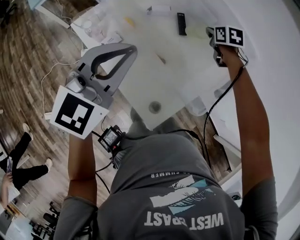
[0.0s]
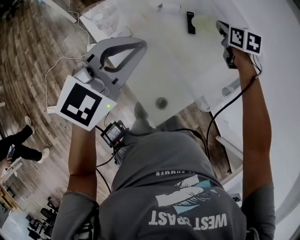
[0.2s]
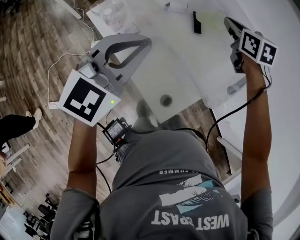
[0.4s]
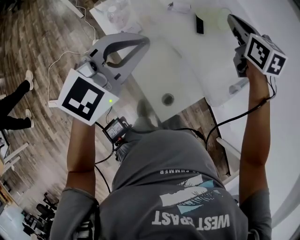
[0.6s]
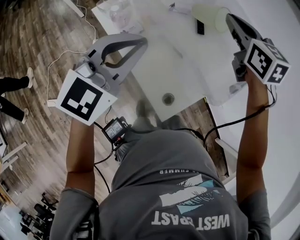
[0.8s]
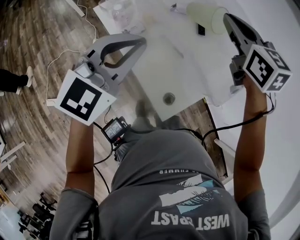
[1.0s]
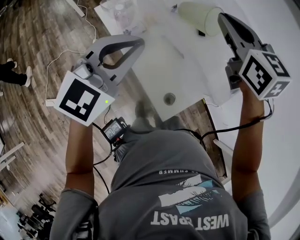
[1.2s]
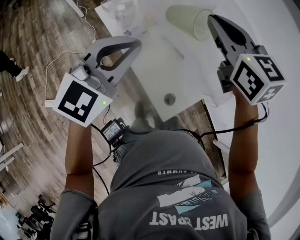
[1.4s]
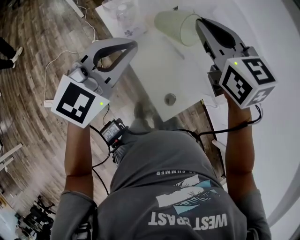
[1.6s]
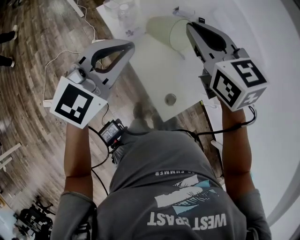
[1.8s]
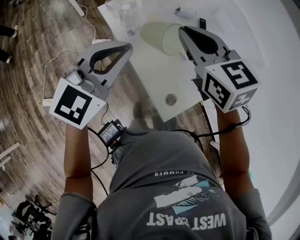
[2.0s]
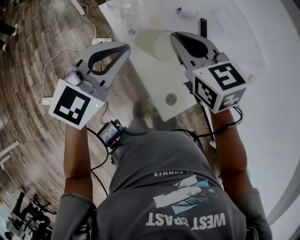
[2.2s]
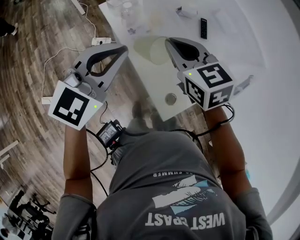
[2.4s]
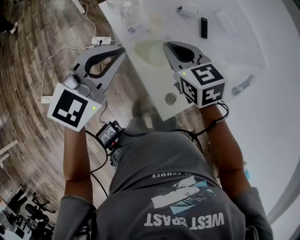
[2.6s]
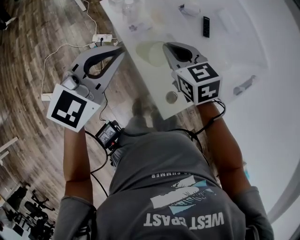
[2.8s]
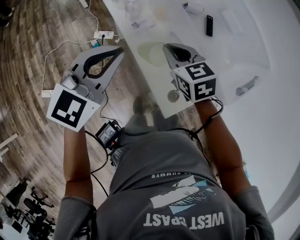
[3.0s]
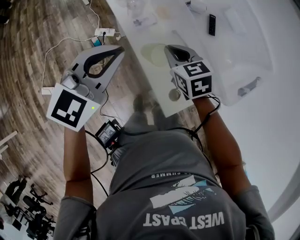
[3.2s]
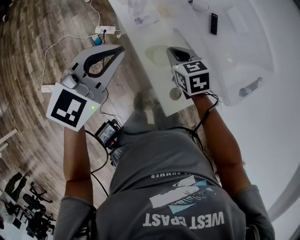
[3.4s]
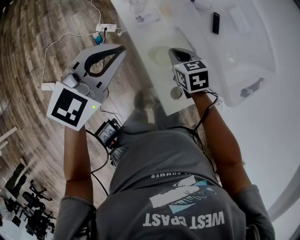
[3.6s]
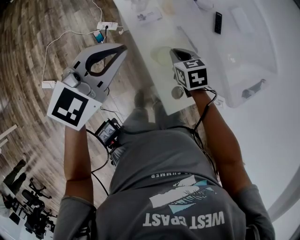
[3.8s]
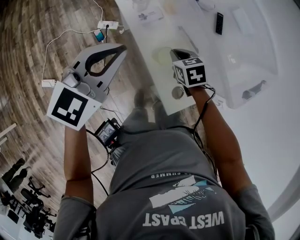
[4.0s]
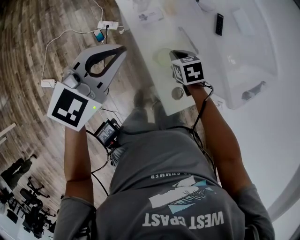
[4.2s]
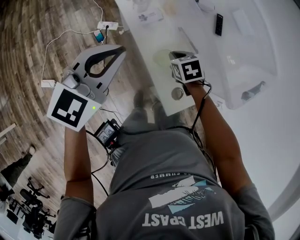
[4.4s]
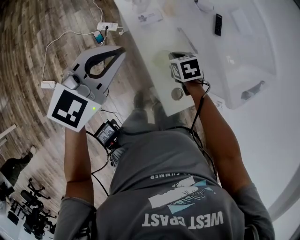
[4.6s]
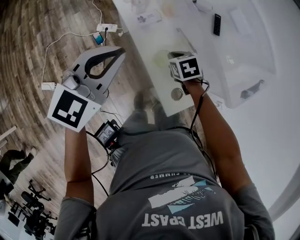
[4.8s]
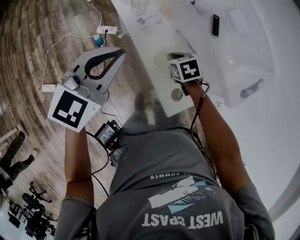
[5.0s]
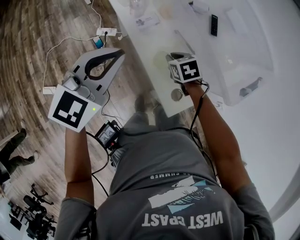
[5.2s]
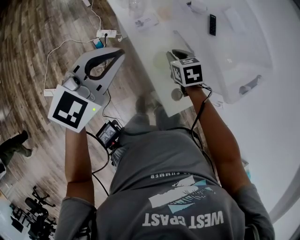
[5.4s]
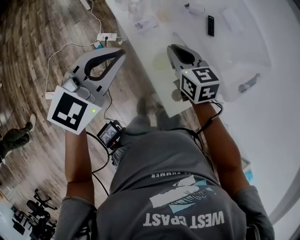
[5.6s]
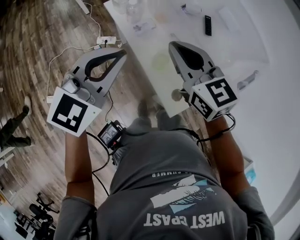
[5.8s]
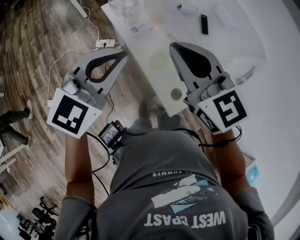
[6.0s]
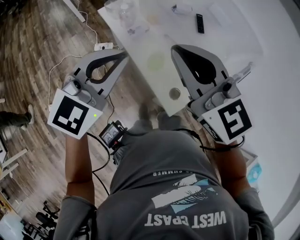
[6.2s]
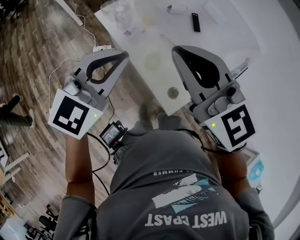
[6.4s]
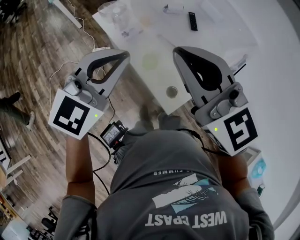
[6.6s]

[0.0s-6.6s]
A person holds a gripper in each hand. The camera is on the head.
0.0s to 1.6s: The right gripper travels to the left, backward and upward by approximately 40 cm, and swivels some 40 degrees; the left gripper moves to the left and backward, some 15 cm.
1.6s to 3.2s: The left gripper is displaced downward by some 10 cm. Meanwhile the right gripper is displaced downward by some 25 cm.
3.2s to 5.0s: The right gripper is displaced downward by about 15 cm.
5.0s to 6.6s: The left gripper travels upward and to the right by about 10 cm, while the right gripper heads upward, covering approximately 40 cm, and tips its fingers upward by approximately 50 degrees.

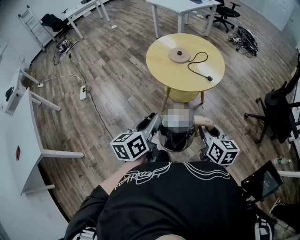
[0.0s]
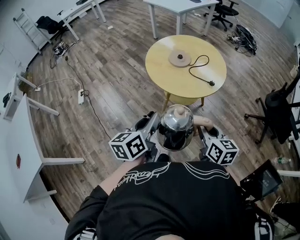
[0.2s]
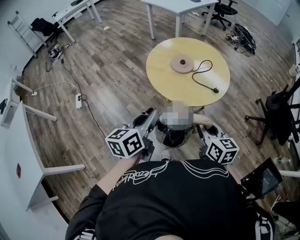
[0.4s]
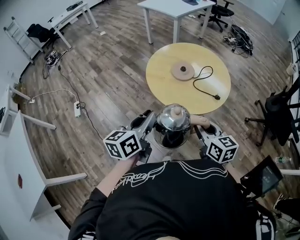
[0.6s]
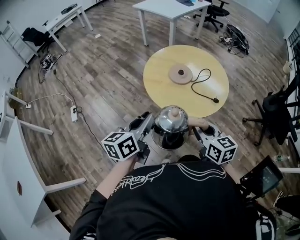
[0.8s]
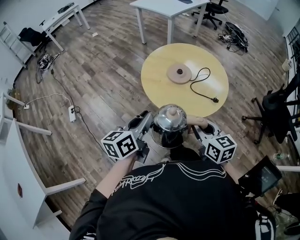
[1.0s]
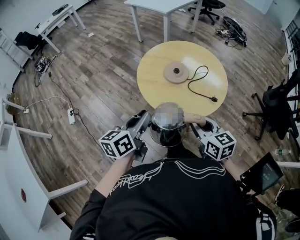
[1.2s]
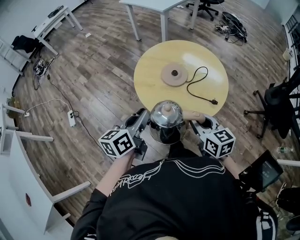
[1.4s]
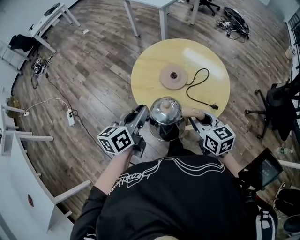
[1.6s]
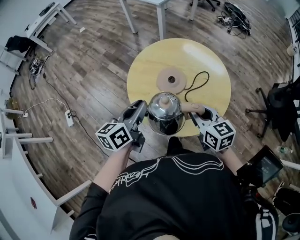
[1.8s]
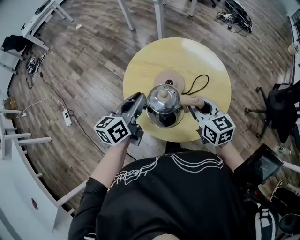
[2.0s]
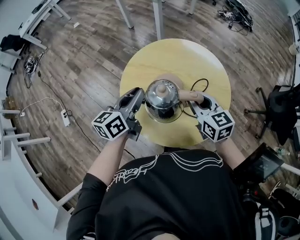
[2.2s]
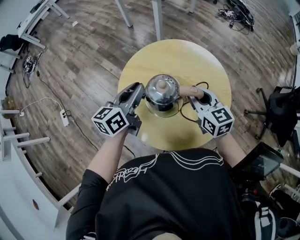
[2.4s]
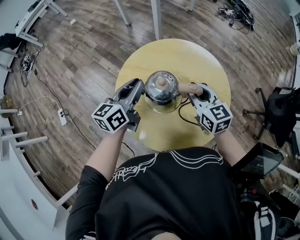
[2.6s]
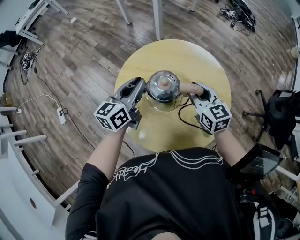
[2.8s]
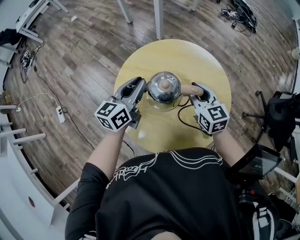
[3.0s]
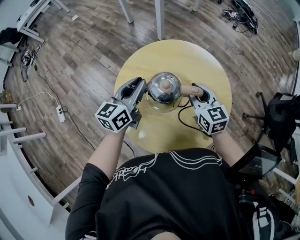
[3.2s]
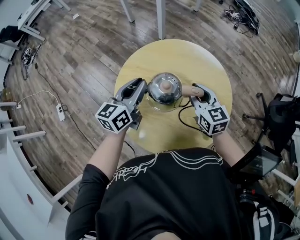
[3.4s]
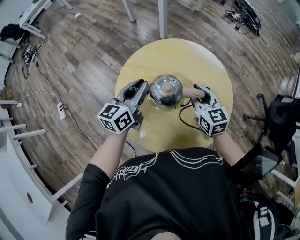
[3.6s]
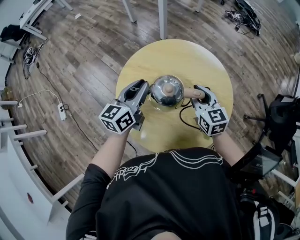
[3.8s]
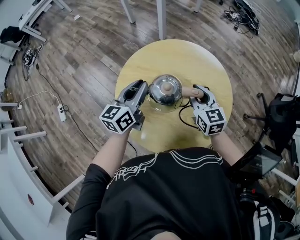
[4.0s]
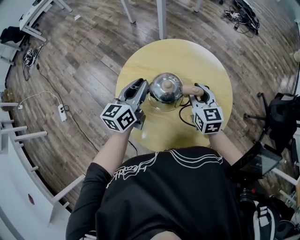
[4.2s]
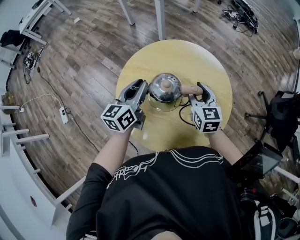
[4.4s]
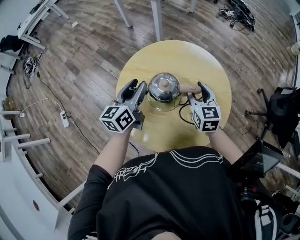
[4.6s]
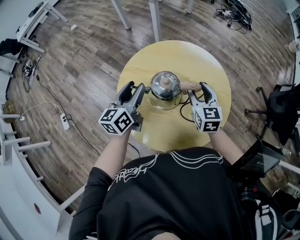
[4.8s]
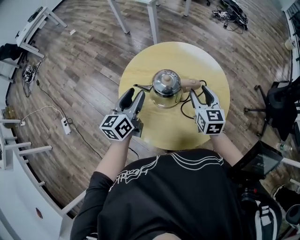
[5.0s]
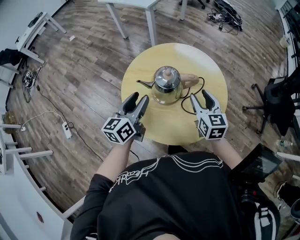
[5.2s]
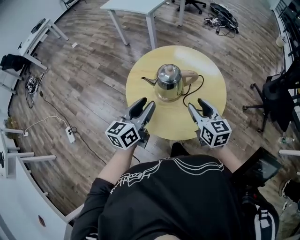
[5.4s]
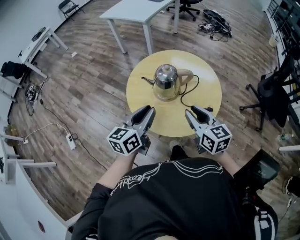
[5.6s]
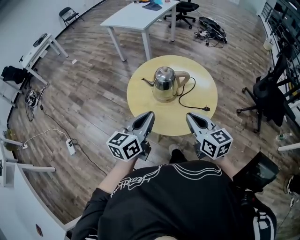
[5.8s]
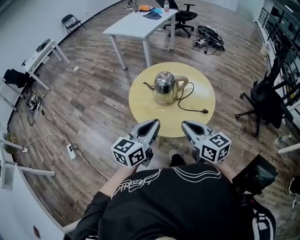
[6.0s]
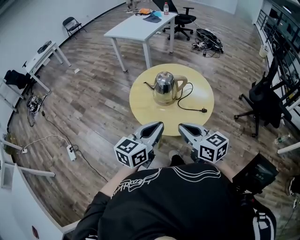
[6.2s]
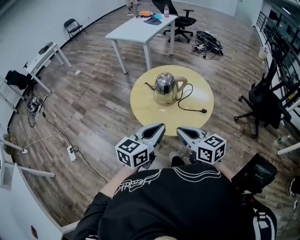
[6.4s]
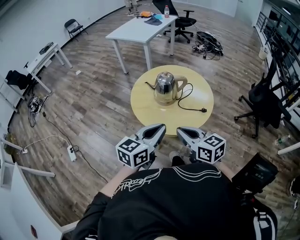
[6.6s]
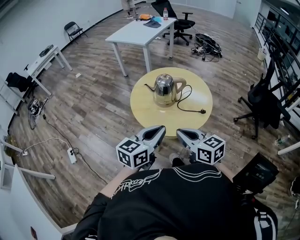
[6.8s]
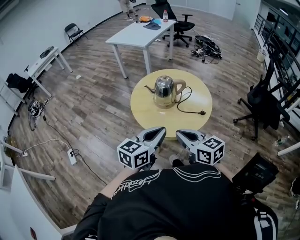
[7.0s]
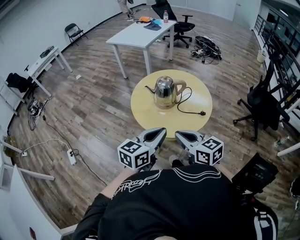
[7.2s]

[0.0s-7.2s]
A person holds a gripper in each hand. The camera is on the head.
0.0s to 1.4s: The two grippers go approximately 25 cm forward.
1.4s to 2.8s: Both grippers travel together forward, some 30 cm.
2.8s to 4.4s: The grippers move only a little.
4.4s to 5.8s: Both grippers move backward and upward, approximately 30 cm. The right gripper closes up; the left gripper opens and closes again.
5.8s to 7.2s: The left gripper goes about 10 cm backward. The right gripper shifts about 10 cm backward and to the left.

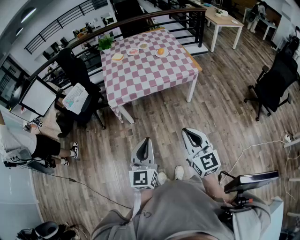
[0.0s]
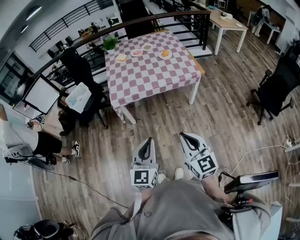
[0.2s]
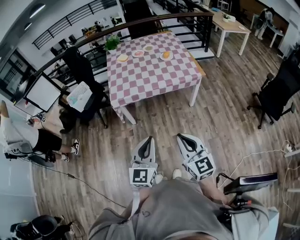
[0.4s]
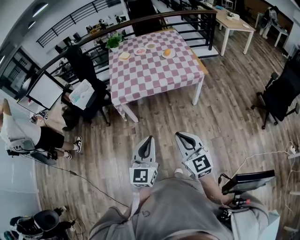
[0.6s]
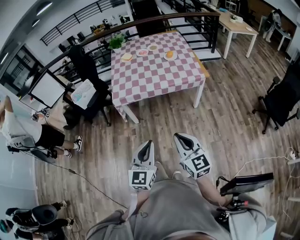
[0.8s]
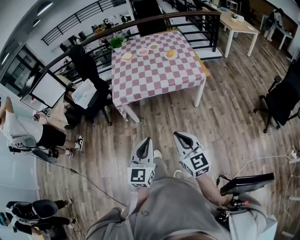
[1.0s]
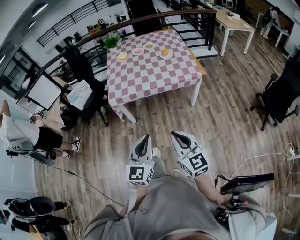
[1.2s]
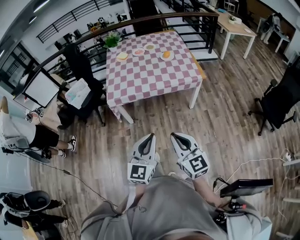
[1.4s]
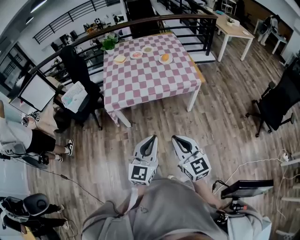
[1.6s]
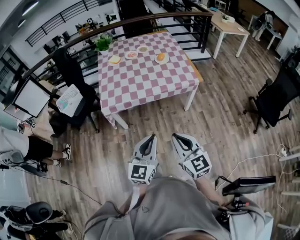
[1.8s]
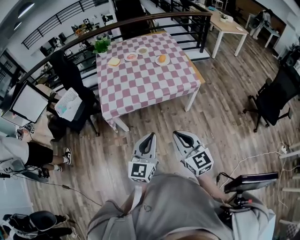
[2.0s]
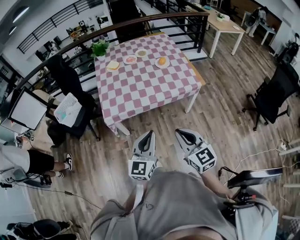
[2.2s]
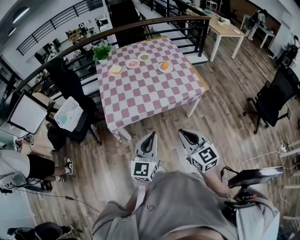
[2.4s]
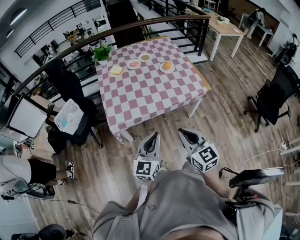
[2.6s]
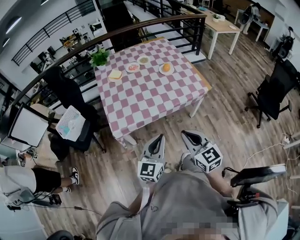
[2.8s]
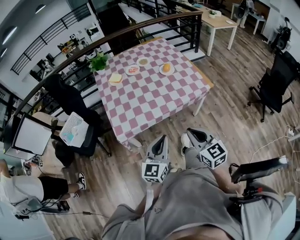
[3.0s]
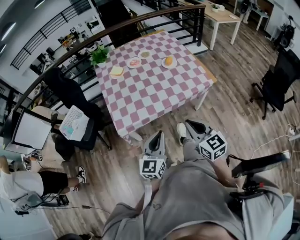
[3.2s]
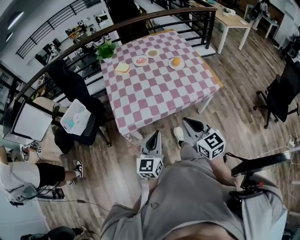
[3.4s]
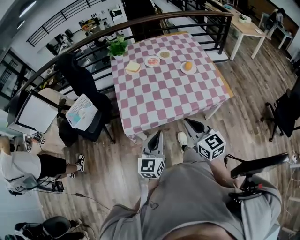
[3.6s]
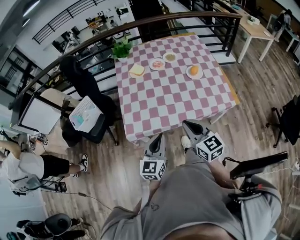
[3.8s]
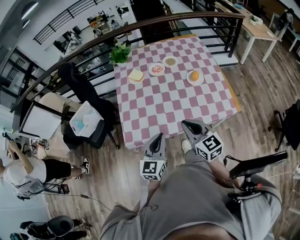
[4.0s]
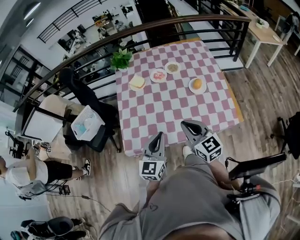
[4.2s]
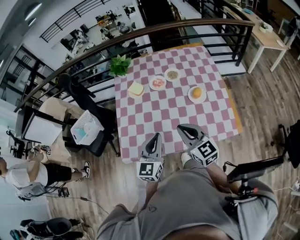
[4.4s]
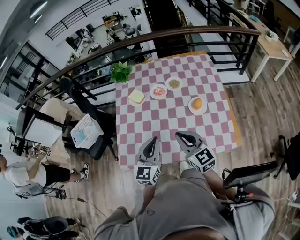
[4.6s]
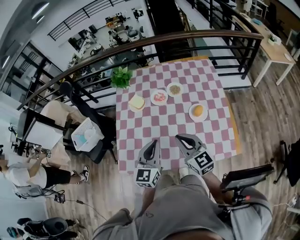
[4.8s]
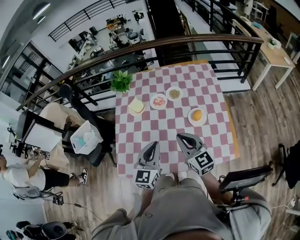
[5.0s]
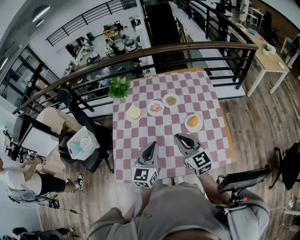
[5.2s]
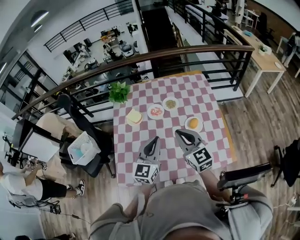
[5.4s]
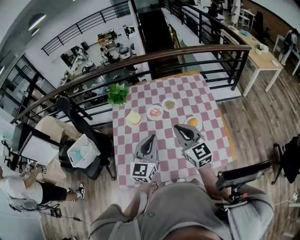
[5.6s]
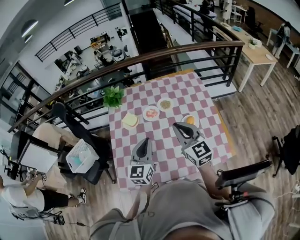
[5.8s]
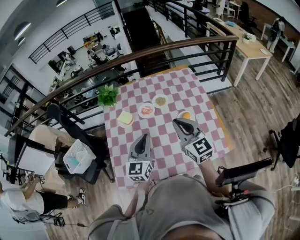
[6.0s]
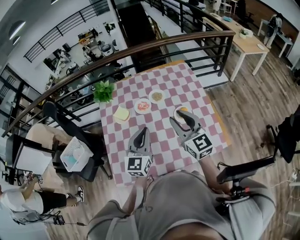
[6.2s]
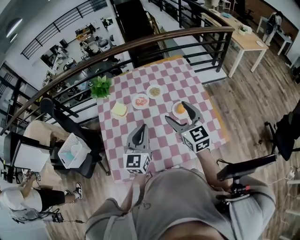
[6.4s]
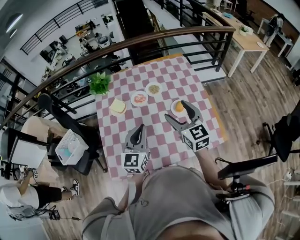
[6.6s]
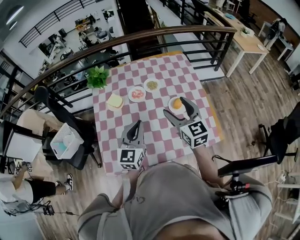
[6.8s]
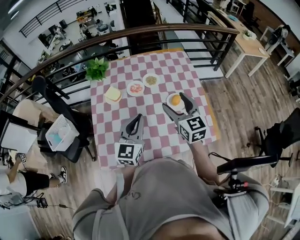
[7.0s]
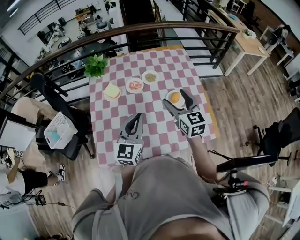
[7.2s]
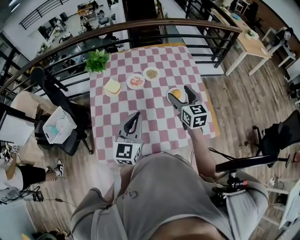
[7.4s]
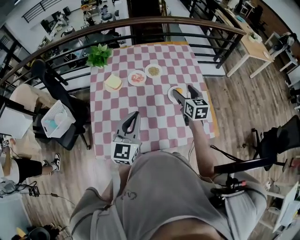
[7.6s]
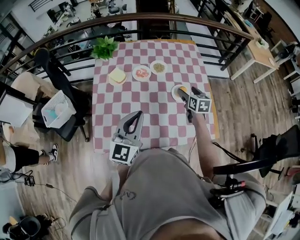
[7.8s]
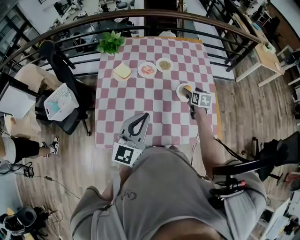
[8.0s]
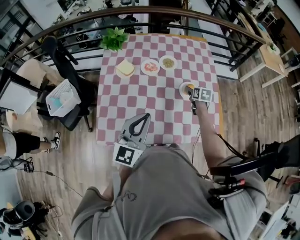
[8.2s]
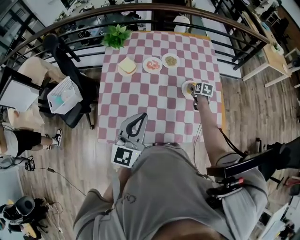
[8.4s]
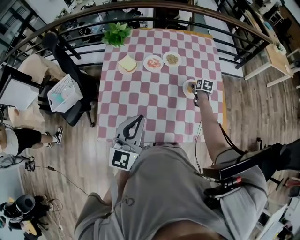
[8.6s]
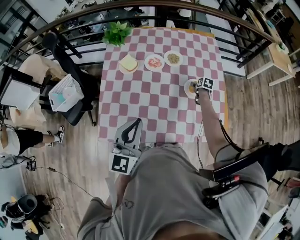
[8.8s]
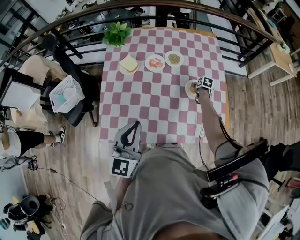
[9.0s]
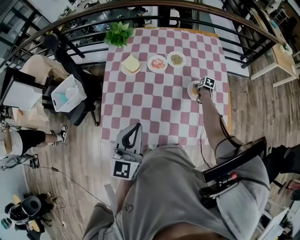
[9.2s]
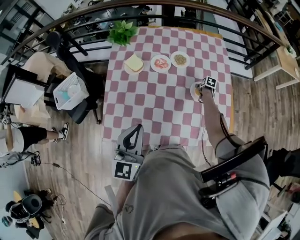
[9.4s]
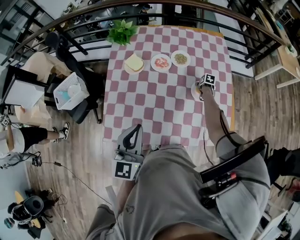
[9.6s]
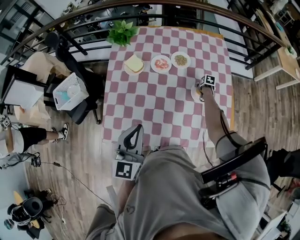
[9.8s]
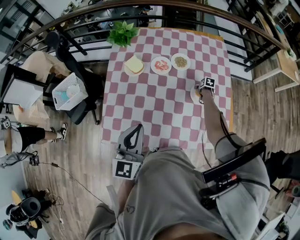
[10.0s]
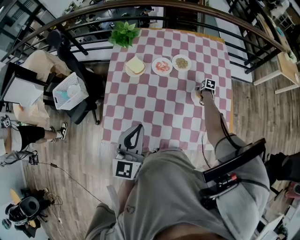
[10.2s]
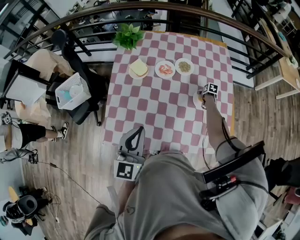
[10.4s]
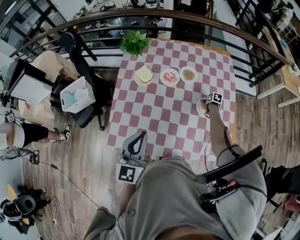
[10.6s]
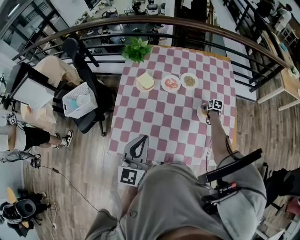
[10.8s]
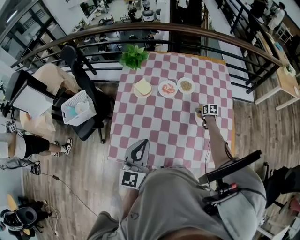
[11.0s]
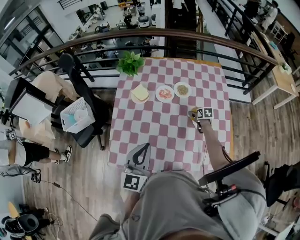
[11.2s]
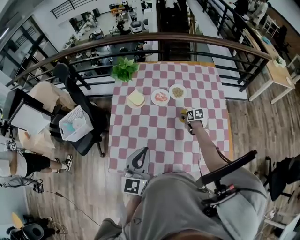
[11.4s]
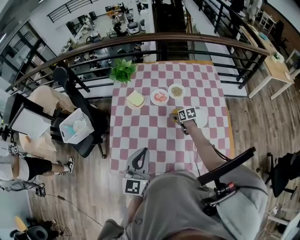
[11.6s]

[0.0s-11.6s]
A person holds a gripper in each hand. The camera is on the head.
0.0s to 1.4s: The left gripper travels to the right by roughly 10 cm, while the right gripper shifts by roughly 5 cm.
1.4s to 2.8s: The grippers both shift forward and to the left by about 25 cm.
2.8s to 4.4s: Both grippers travel together forward, about 40 cm. The left gripper swivels approximately 20 degrees.
4.4s to 5.8s: The left gripper shifts about 15 cm forward, while the right gripper shifts some 15 cm forward, upward and to the right.
5.8s to 7.2s: The right gripper changes place by roughly 5 cm, and opens its fingers.
7.2s to 8.8s: The left gripper travels backward by approximately 5 cm; the right gripper heads downward and forward, covering some 40 cm, and tilts its fingers approximately 50 degrees downward.
8.8s to 10.2s: The right gripper goes approximately 5 cm downward.
10.2s to 11.6s: The right gripper travels to the left and upward by some 25 cm, and swivels roughly 30 degrees.
